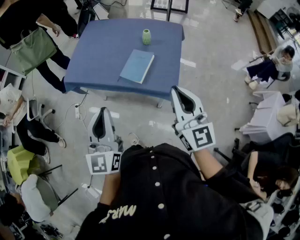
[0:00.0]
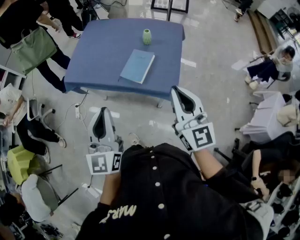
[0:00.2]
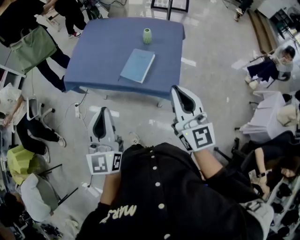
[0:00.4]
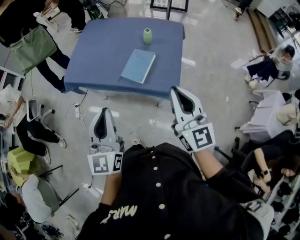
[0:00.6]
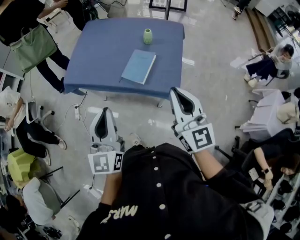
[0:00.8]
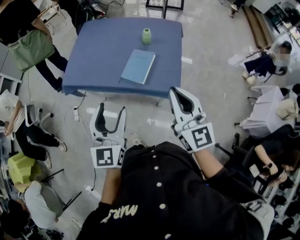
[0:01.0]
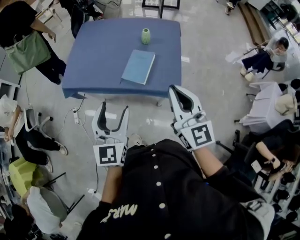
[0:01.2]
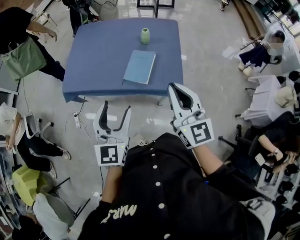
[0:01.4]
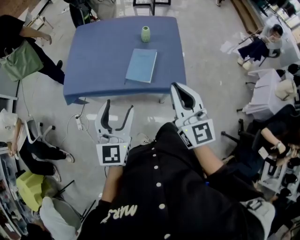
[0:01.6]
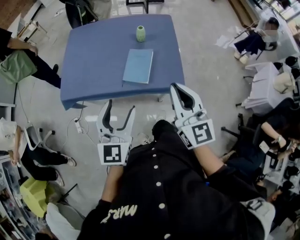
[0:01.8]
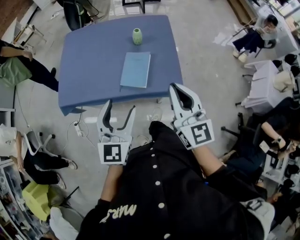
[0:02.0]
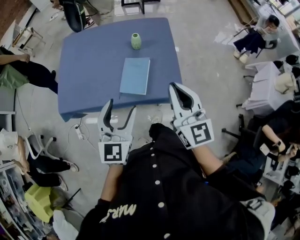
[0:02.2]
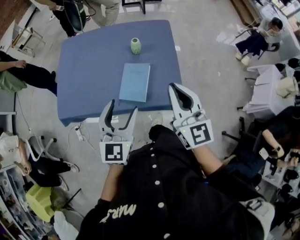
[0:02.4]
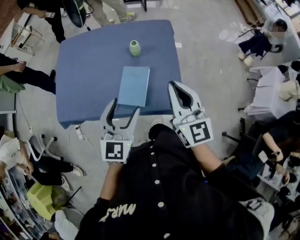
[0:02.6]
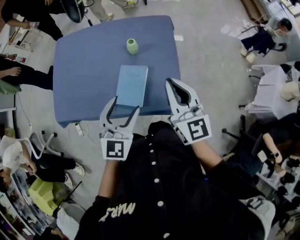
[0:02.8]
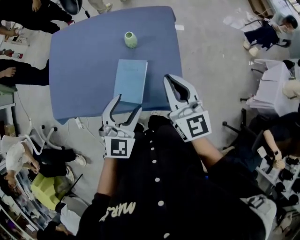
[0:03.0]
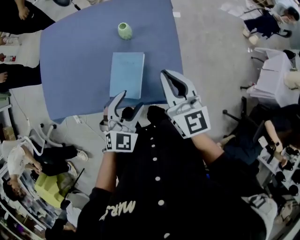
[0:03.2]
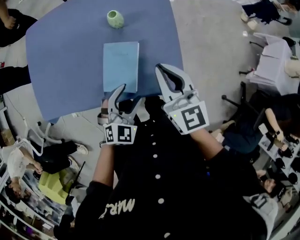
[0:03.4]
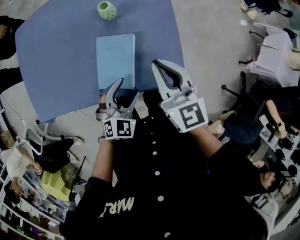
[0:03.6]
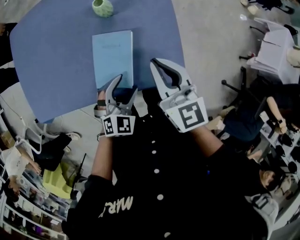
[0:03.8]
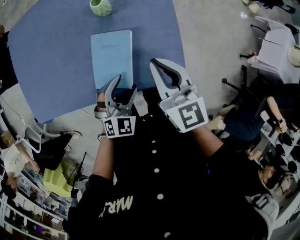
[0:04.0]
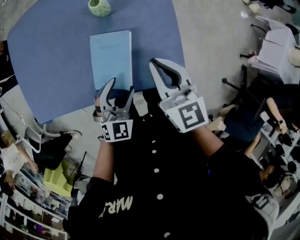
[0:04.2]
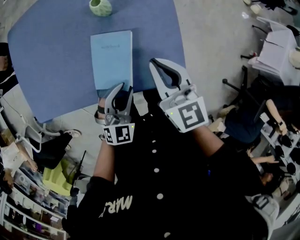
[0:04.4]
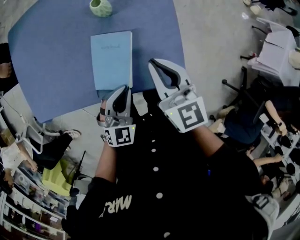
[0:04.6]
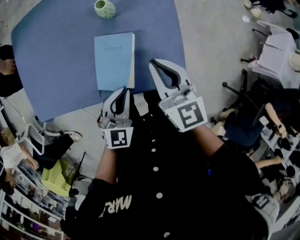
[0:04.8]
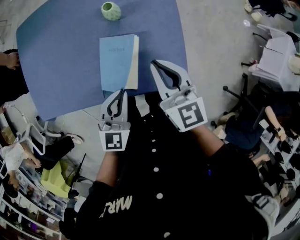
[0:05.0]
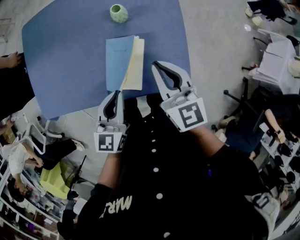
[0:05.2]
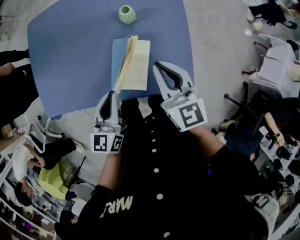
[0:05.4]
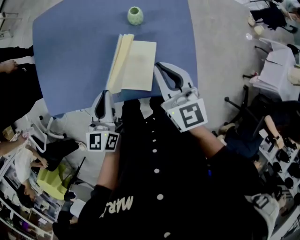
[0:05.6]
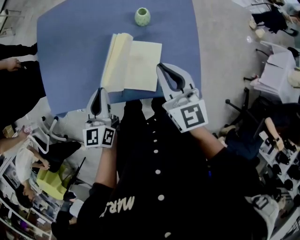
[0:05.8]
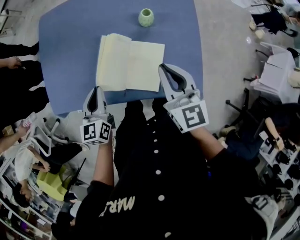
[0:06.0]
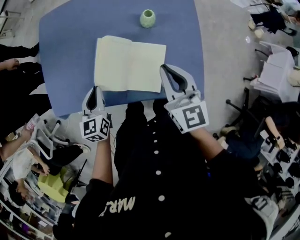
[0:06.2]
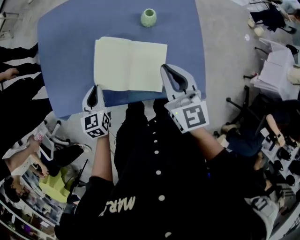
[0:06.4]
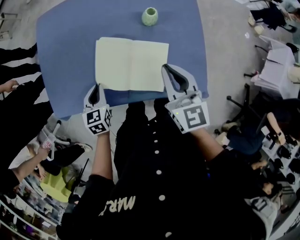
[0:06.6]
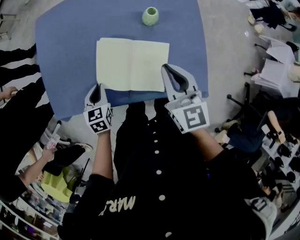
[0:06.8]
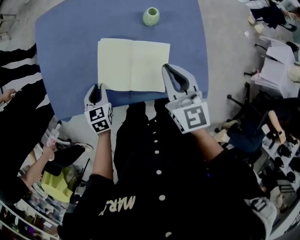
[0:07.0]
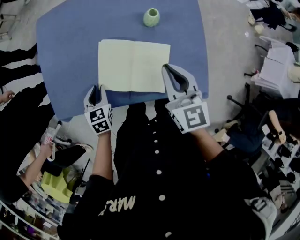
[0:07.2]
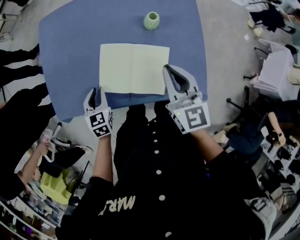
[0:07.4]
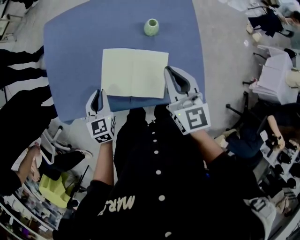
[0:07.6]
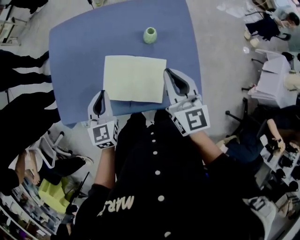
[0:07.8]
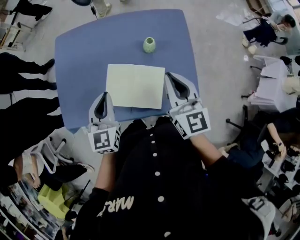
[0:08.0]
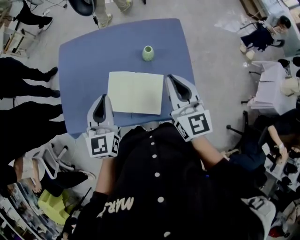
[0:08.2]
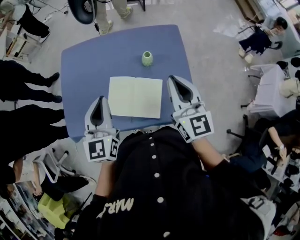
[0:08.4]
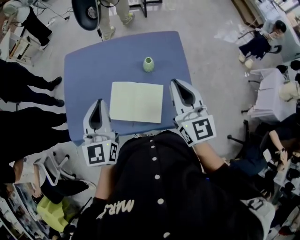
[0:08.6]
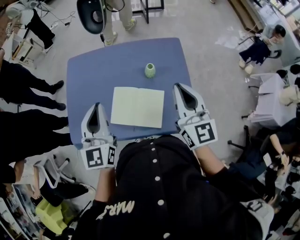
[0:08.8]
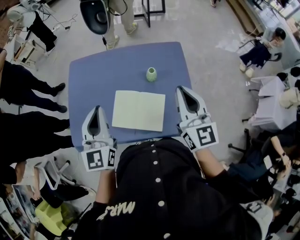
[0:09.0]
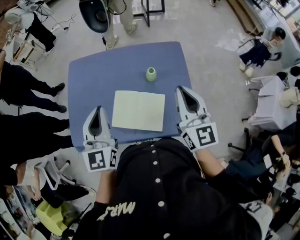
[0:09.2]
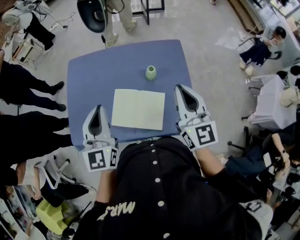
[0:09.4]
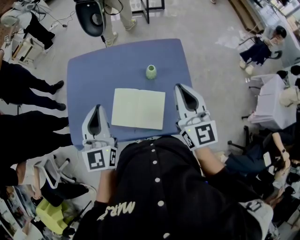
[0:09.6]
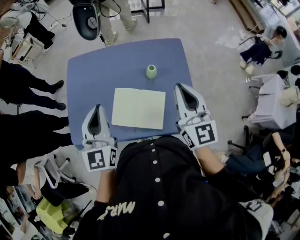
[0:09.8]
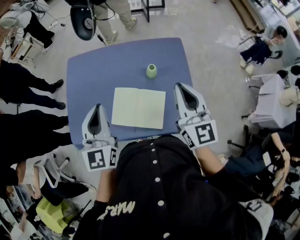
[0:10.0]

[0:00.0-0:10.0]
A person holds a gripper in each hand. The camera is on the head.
0:00.0 to 0:01.4: The left gripper goes some 10 cm forward and downward, swivels some 20 degrees, and opens up; the right gripper shifts some 10 cm to the left.
0:01.4 to 0:02.8: The two grippers go some 25 cm forward. The left gripper swivels about 20 degrees.
0:02.8 to 0:04.2: Both grippers move downward, roughly 20 cm. The left gripper rotates roughly 20 degrees.
0:04.2 to 0:05.8: The left gripper moves to the left and upward, some 25 cm, rotates around the line of its fingers by approximately 50 degrees, counterclockwise from behind, and closes its fingers. The right gripper moves to the left and upward, roughly 10 cm.
0:05.8 to 0:07.2: The left gripper moves downward and to the left, approximately 15 cm, and turns by approximately 40 degrees.
0:07.2 to 0:08.6: The left gripper shifts about 35 cm upward, and points its fingers some 40 degrees further upward; the right gripper heads upward, covering some 20 cm.
0:08.6 to 0:10.0: There are only small adjustments of the grippers.

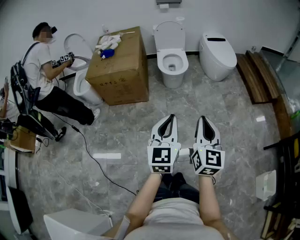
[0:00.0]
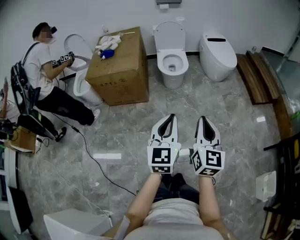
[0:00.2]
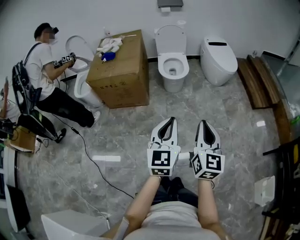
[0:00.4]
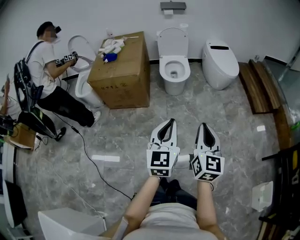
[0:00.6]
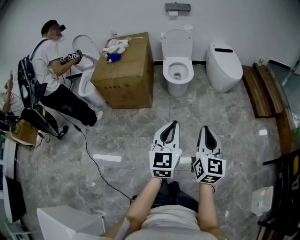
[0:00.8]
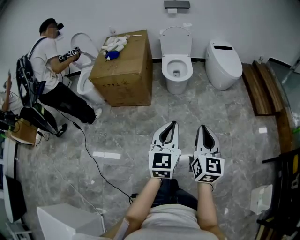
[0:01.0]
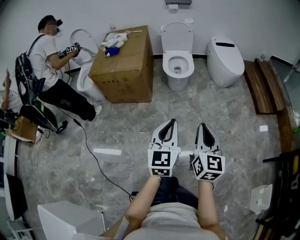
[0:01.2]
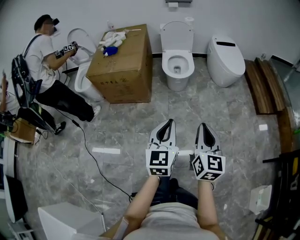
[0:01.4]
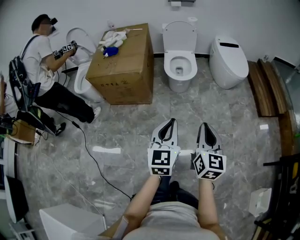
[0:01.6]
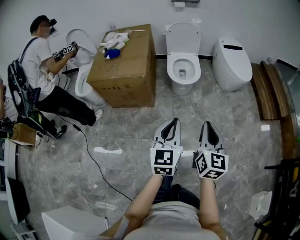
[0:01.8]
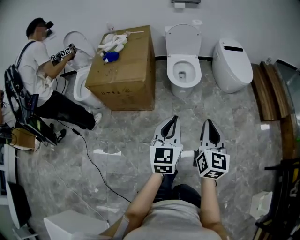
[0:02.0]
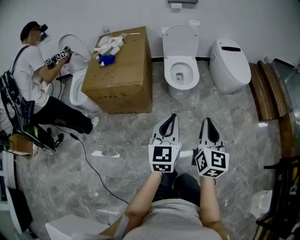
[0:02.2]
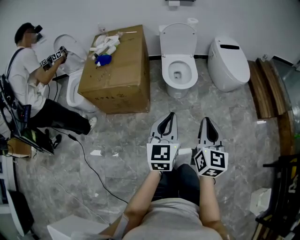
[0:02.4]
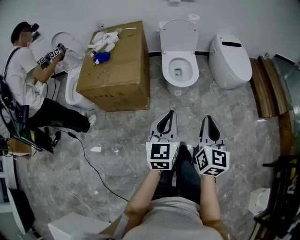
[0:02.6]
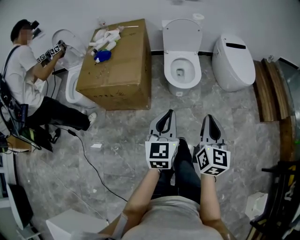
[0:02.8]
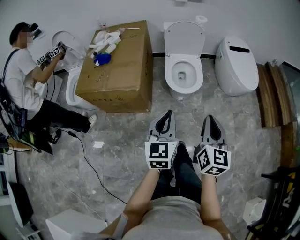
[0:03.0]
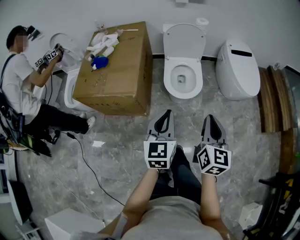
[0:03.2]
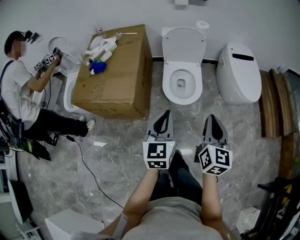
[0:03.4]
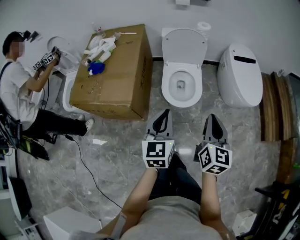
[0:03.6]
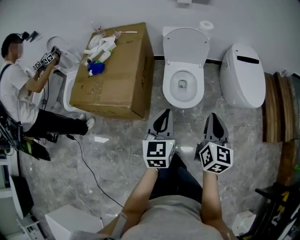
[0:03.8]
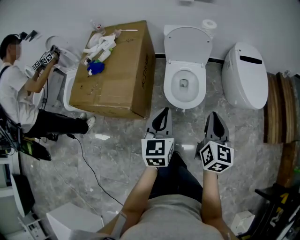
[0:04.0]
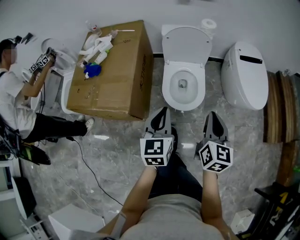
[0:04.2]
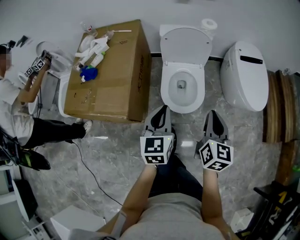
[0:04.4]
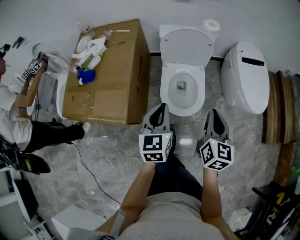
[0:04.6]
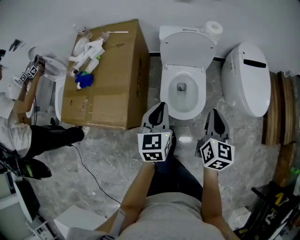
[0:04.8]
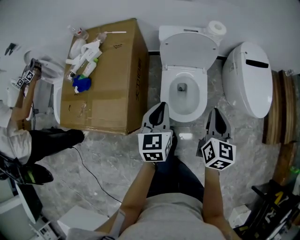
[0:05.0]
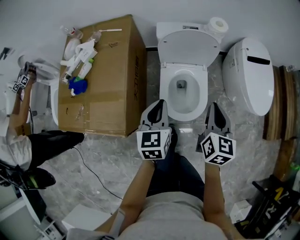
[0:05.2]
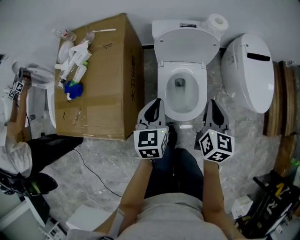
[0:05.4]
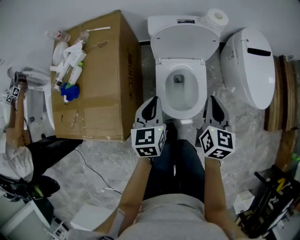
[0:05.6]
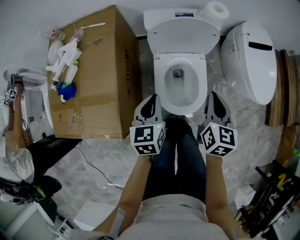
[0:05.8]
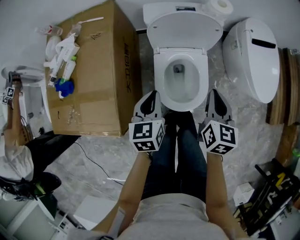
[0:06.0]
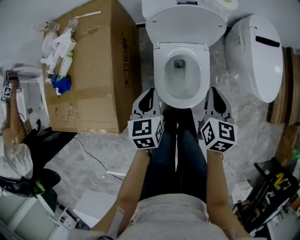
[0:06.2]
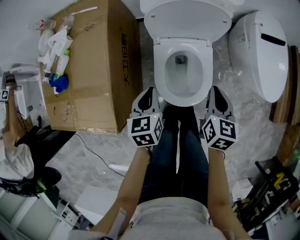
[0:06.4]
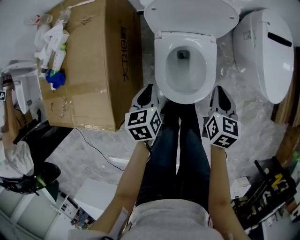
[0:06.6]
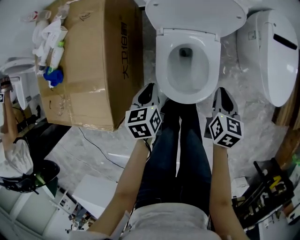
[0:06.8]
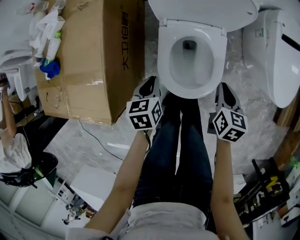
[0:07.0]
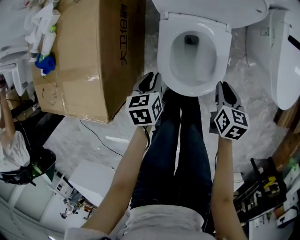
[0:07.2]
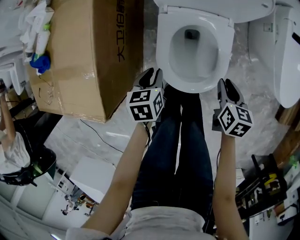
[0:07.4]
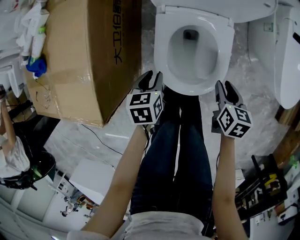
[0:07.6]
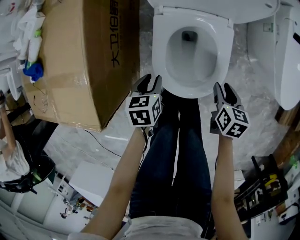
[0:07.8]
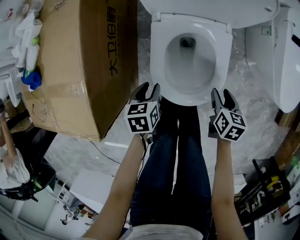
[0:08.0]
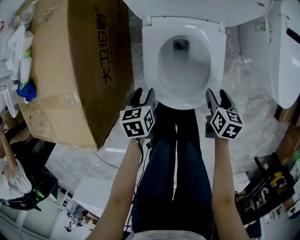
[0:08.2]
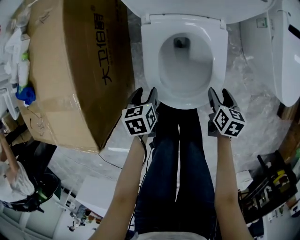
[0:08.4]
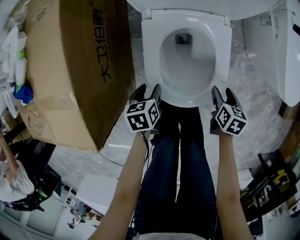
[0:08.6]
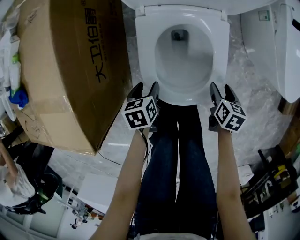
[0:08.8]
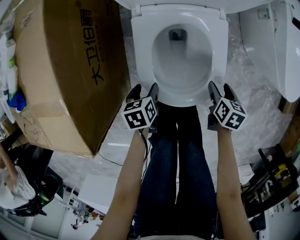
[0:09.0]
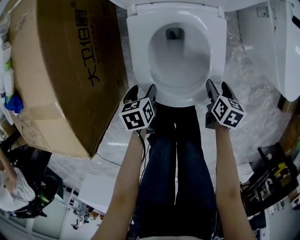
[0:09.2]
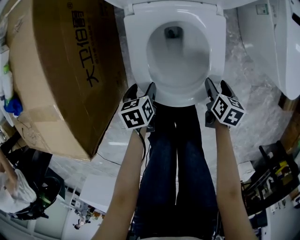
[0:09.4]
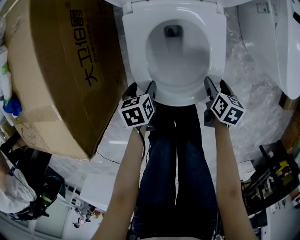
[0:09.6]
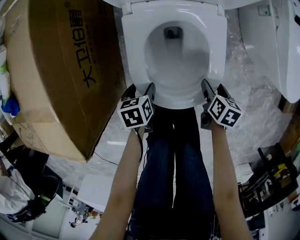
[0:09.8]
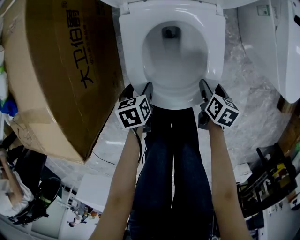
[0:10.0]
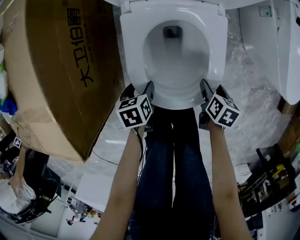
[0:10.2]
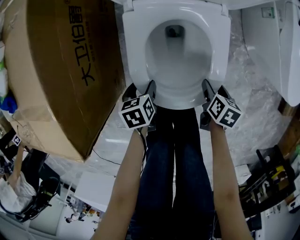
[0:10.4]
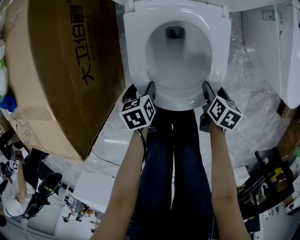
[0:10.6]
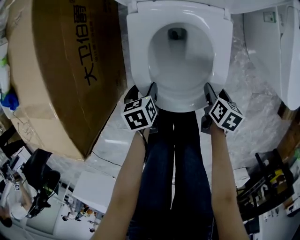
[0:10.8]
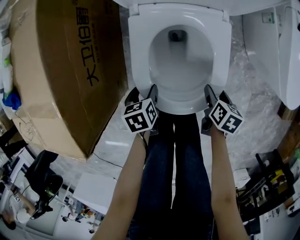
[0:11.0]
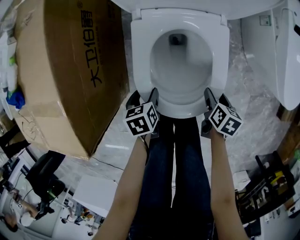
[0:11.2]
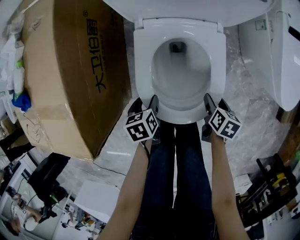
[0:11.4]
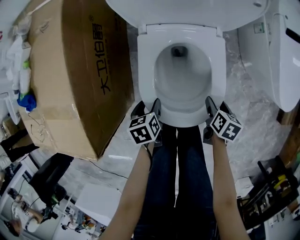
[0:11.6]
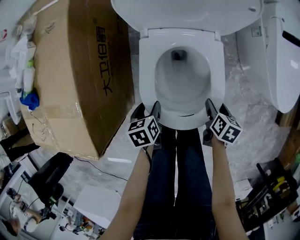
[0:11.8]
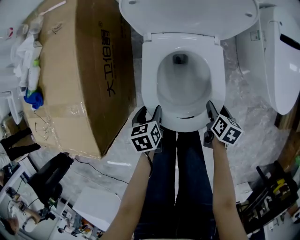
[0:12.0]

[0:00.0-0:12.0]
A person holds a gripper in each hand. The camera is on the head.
0:00.0 to 0:01.6: The right gripper goes roughly 15 cm forward and downward. The left gripper is displaced forward by some 10 cm.
0:01.6 to 0:03.0: Both grippers travel together forward, some 25 cm.
0:03.0 to 0:04.4: The grippers both shift forward by about 30 cm.
0:04.4 to 0:06.0: Both grippers travel together forward and downward, about 25 cm.
0:06.0 to 0:07.6: The grippers both shift downward by some 25 cm. The left gripper rotates some 30 degrees. Meanwhile the right gripper changes its angle by approximately 30 degrees, and opens up.
0:07.6 to 0:09.0: Both grippers move downward, some 15 cm. The left gripper opens. Meanwhile the right gripper opens up.
0:09.0 to 0:10.4: There are only small adjustments of the grippers.
0:10.4 to 0:12.0: The two grippers go approximately 10 cm upward.

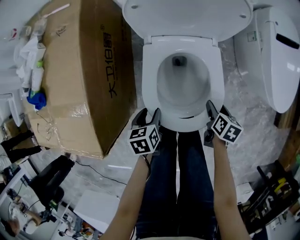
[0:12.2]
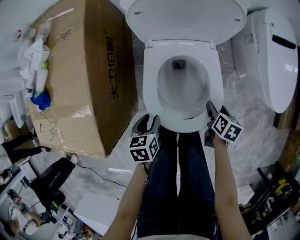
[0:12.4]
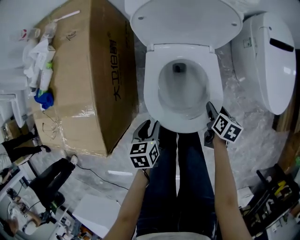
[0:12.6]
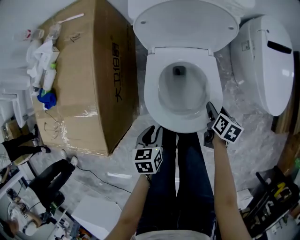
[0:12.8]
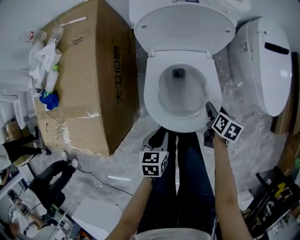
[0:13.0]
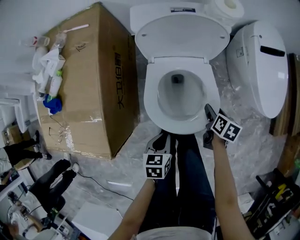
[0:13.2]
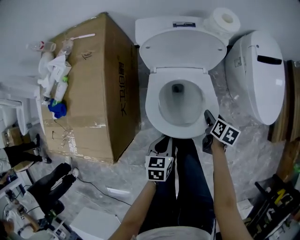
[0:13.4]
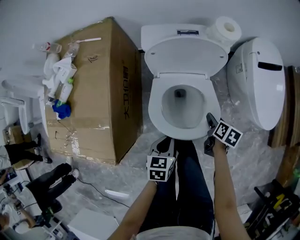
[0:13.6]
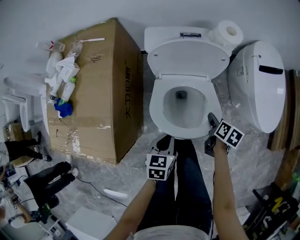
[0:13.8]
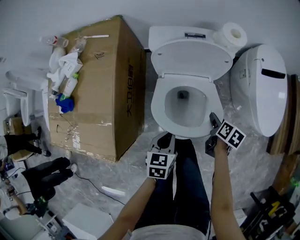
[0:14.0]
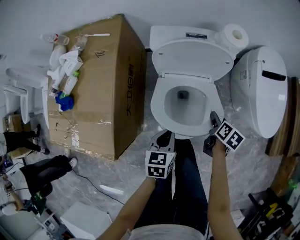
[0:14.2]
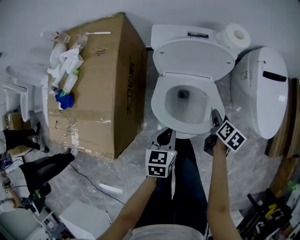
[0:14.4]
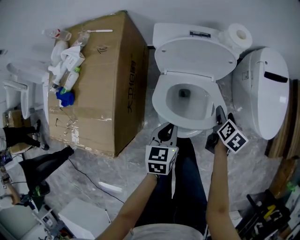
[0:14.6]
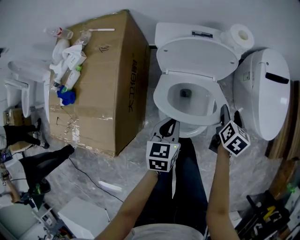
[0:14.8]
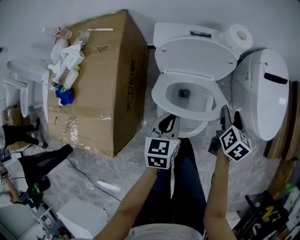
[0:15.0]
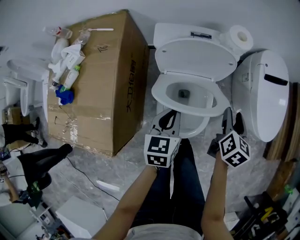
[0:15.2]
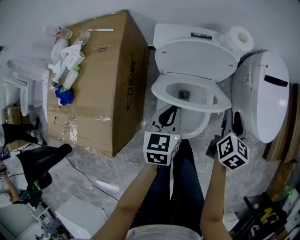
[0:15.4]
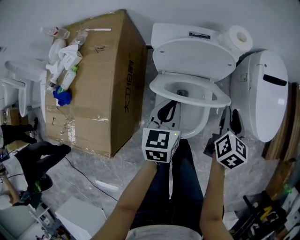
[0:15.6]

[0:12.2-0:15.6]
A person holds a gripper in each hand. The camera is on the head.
0:12.2 to 0:13.8: The right gripper is displaced upward and forward by approximately 15 cm; the left gripper shifts roughly 20 cm upward and to the right, turns by about 20 degrees, and closes.
0:13.8 to 0:15.6: The right gripper heads upward, covering about 15 cm, swivels about 30 degrees, and closes, while the left gripper travels forward and upward by about 15 cm.
